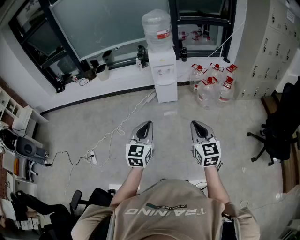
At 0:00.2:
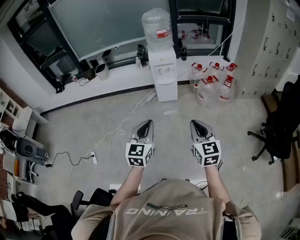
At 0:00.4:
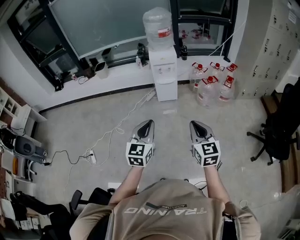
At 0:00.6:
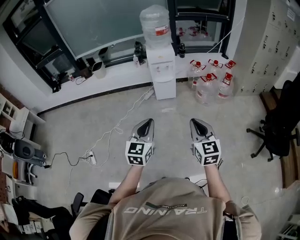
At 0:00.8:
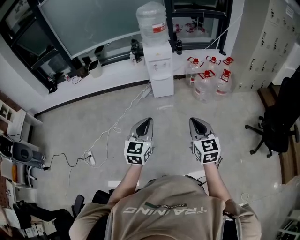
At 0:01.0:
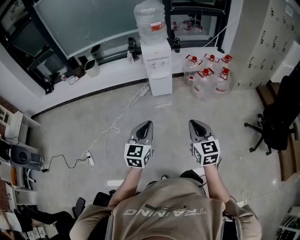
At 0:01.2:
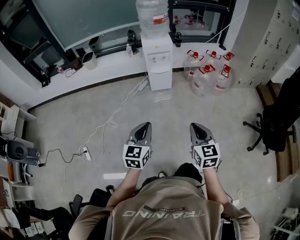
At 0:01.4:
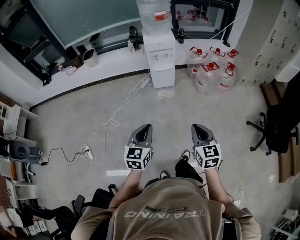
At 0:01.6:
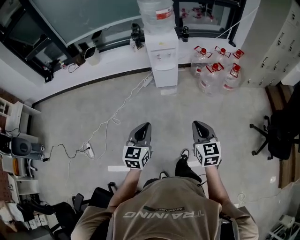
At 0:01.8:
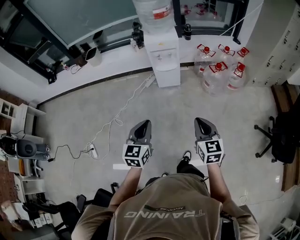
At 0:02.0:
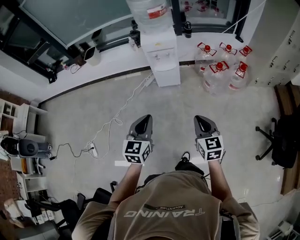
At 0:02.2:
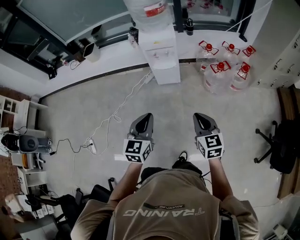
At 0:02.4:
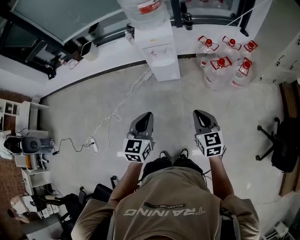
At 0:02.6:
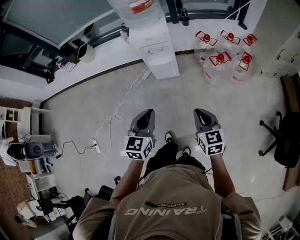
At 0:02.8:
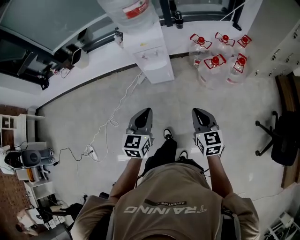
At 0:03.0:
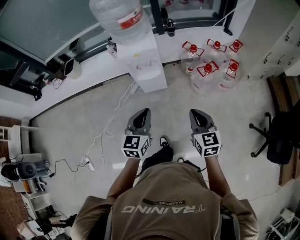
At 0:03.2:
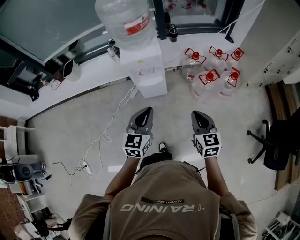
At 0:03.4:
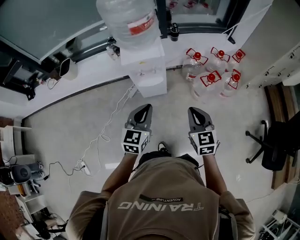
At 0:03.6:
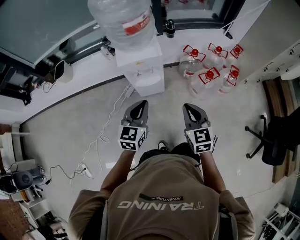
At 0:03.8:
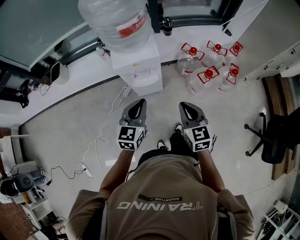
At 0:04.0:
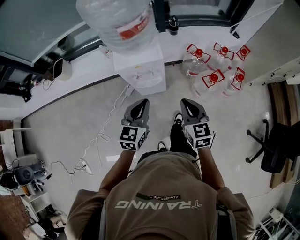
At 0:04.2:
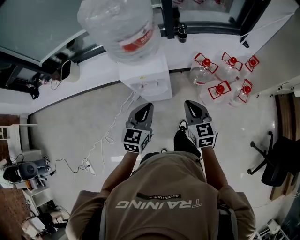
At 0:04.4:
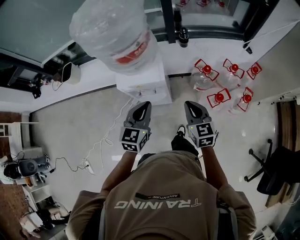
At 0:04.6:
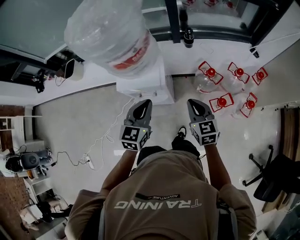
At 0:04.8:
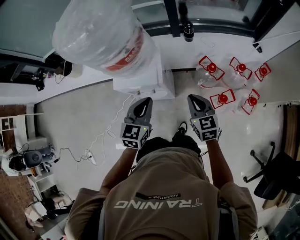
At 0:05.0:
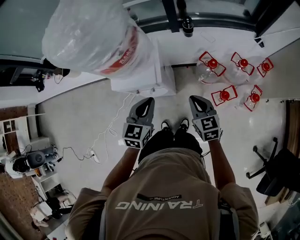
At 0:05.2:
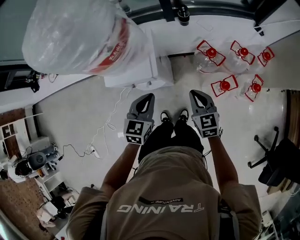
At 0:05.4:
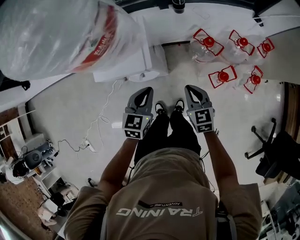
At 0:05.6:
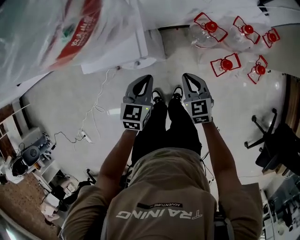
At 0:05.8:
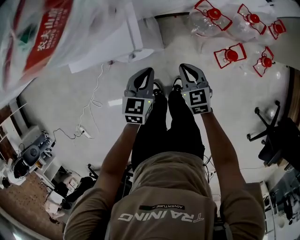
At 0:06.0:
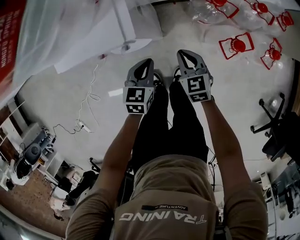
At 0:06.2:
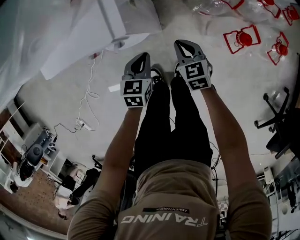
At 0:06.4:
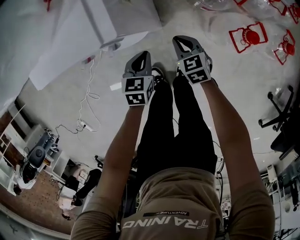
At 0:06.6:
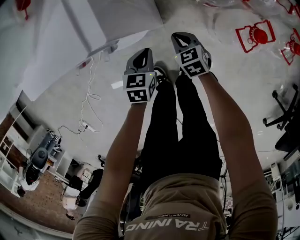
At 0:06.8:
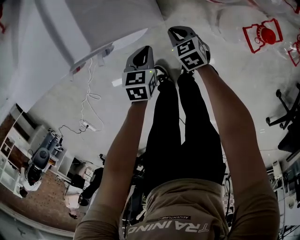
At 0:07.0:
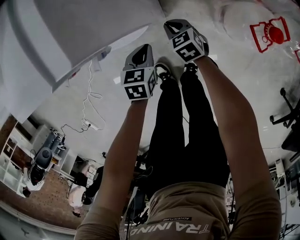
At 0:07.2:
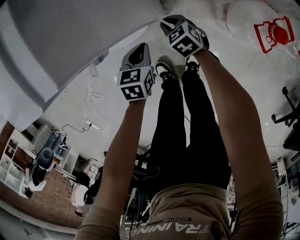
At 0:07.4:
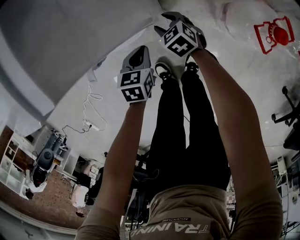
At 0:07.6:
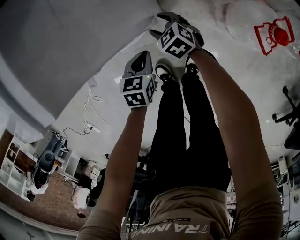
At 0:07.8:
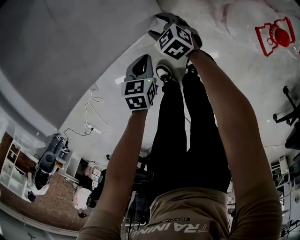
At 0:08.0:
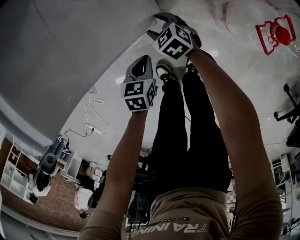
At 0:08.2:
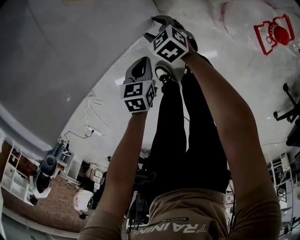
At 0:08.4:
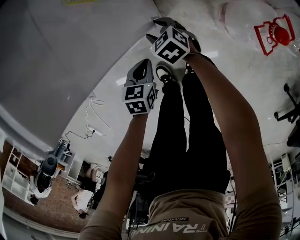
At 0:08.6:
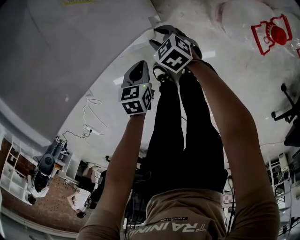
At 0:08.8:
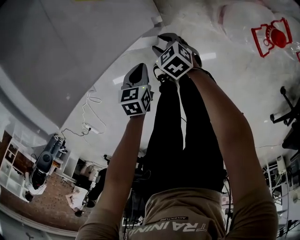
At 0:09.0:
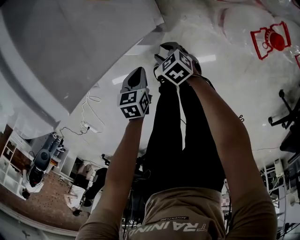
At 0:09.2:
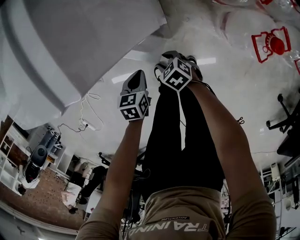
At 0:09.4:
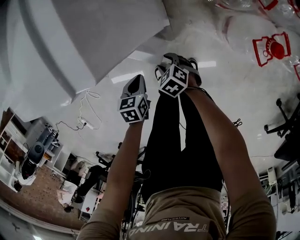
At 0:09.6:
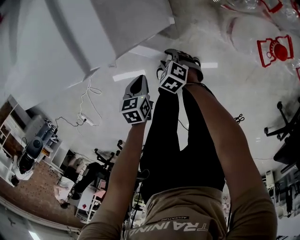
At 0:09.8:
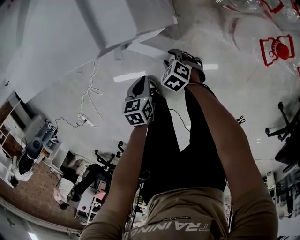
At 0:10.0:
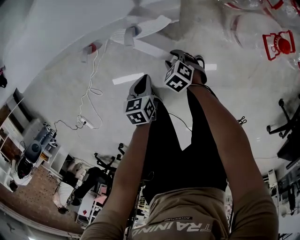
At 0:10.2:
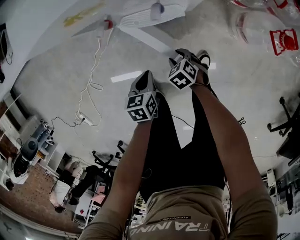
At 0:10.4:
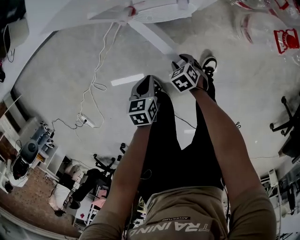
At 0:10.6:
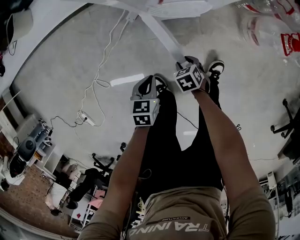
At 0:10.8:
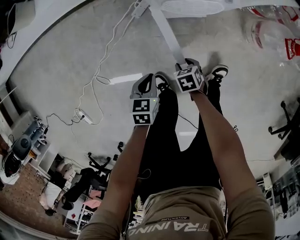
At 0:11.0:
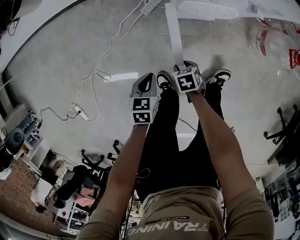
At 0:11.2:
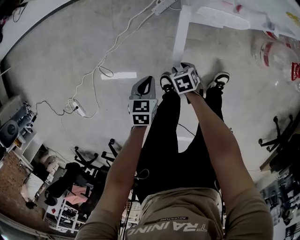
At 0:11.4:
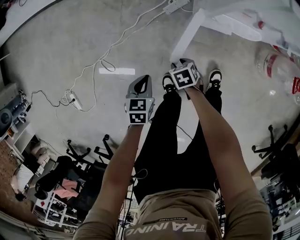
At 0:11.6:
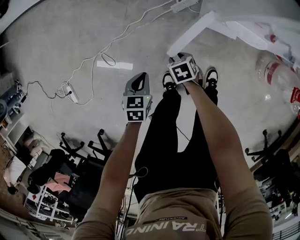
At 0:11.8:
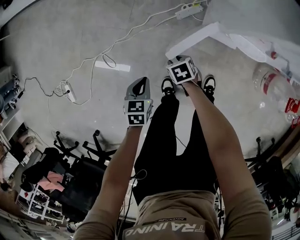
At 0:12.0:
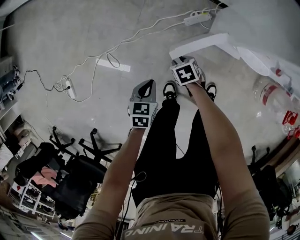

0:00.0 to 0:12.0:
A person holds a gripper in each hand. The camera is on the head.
0:00.0 to 0:01.6: Both grippers move forward and downward, roughly 15 cm.
0:01.6 to 0:03.0: The two grippers go approximately 35 cm forward and to the right.
0:03.0 to 0:04.4: The grippers both shift forward by roughly 35 cm.
0:04.4 to 0:06.0: Both grippers travel together downward, some 35 cm. The left gripper turns by roughly 20 degrees.
0:06.0 to 0:07.6: The right gripper is displaced downward and to the left by some 30 cm, turns by roughly 20 degrees, and opens its fingers. Meanwhile the left gripper is displaced downward by some 25 cm.
0:07.6 to 0:09.0: The right gripper moves backward, approximately 10 cm; the left gripper shifts by roughly 5 cm.
0:09.0 to 0:10.4: The left gripper goes some 20 cm to the left, while the right gripper travels to the left and backward by about 15 cm.
0:10.4 to 0:12.0: The left gripper changes place by some 30 cm. Meanwhile the right gripper changes place by approximately 30 cm.

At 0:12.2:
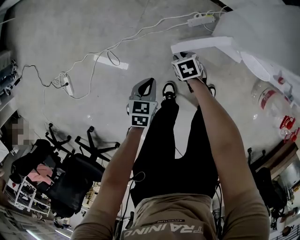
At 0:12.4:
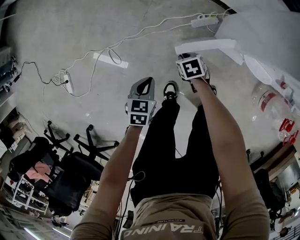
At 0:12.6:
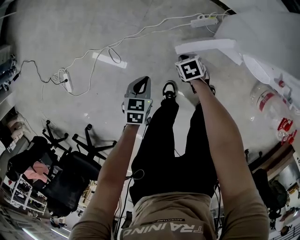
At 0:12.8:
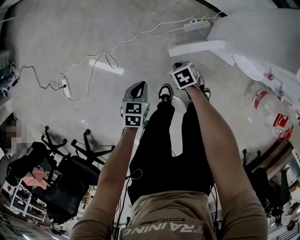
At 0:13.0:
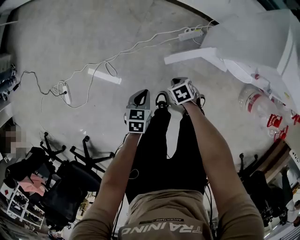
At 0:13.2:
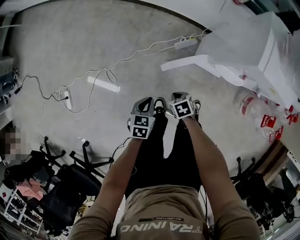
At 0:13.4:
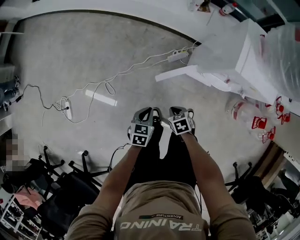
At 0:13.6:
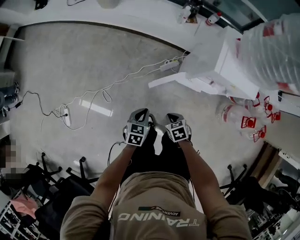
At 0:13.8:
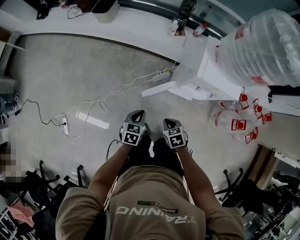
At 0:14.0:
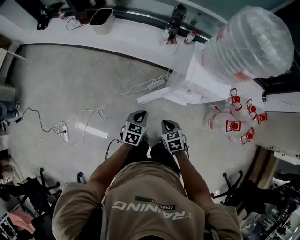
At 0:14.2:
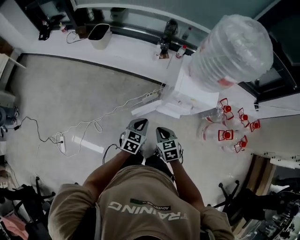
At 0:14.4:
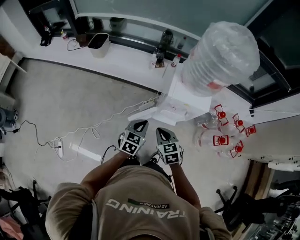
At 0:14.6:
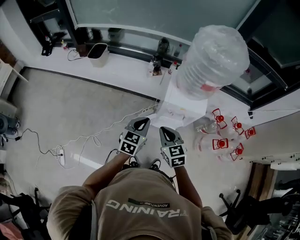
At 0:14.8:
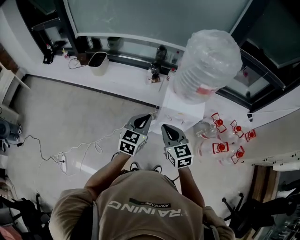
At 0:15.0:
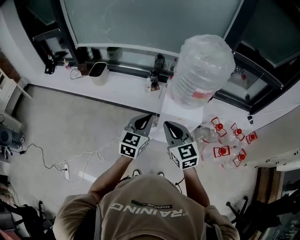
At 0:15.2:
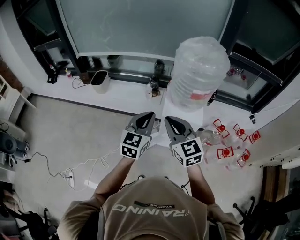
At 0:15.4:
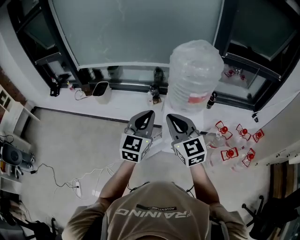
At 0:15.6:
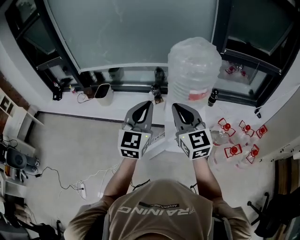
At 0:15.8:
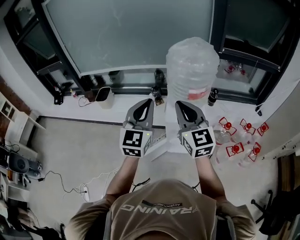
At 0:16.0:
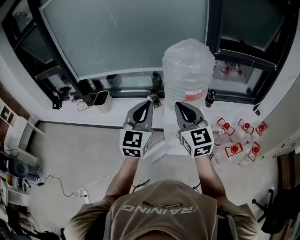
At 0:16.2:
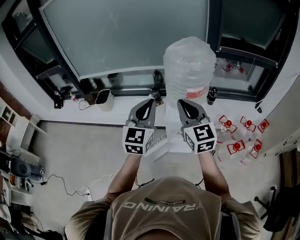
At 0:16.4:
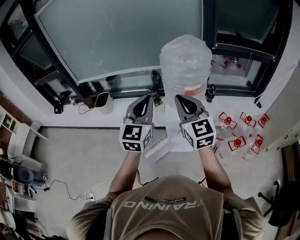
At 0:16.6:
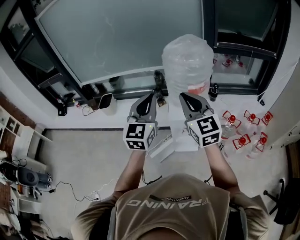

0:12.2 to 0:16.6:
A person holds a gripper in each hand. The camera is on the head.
0:12.2 to 0:13.6: The right gripper goes some 30 cm upward and backward, and closes its fingers. The left gripper is displaced upward by roughly 20 cm.
0:13.6 to 0:15.2: The two grippers go approximately 50 cm upward. The left gripper points its fingers about 40 degrees further upward, while the right gripper points its fingers roughly 60 degrees further upward.
0:15.2 to 0:16.6: The right gripper goes roughly 15 cm upward and to the right; the left gripper moves upward, approximately 15 cm.

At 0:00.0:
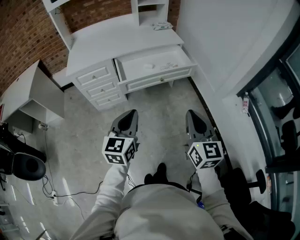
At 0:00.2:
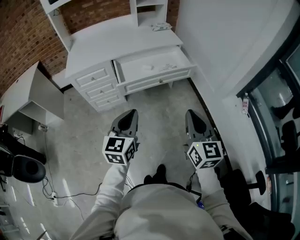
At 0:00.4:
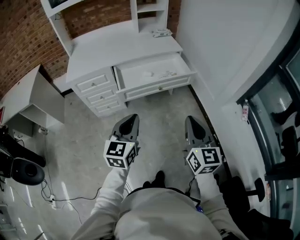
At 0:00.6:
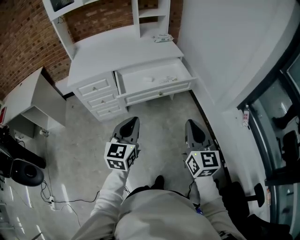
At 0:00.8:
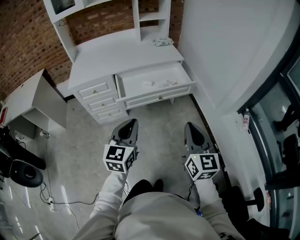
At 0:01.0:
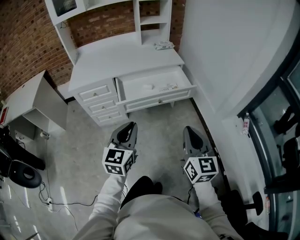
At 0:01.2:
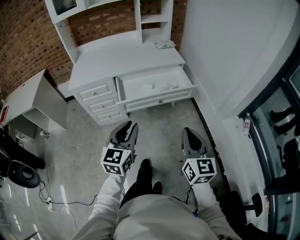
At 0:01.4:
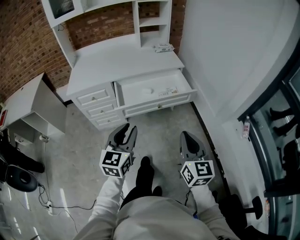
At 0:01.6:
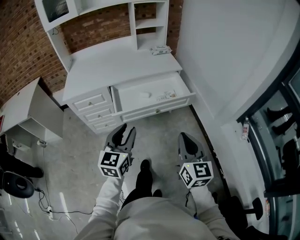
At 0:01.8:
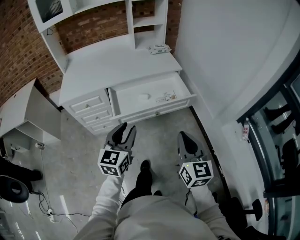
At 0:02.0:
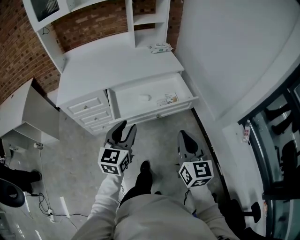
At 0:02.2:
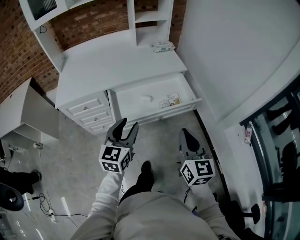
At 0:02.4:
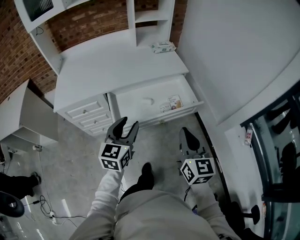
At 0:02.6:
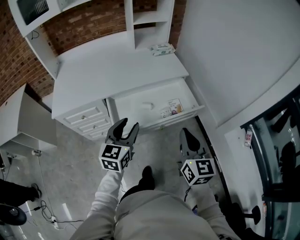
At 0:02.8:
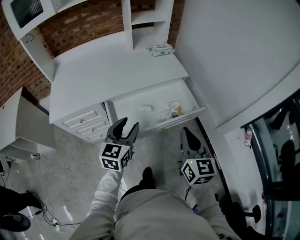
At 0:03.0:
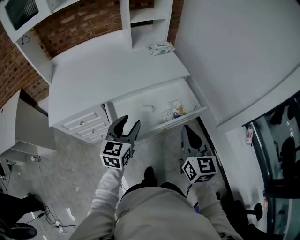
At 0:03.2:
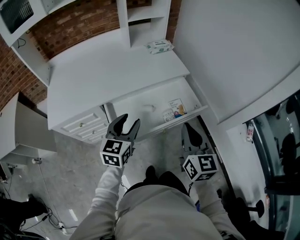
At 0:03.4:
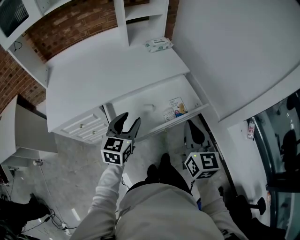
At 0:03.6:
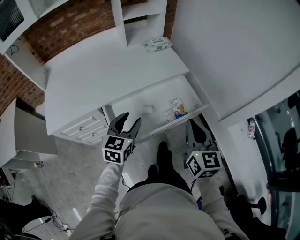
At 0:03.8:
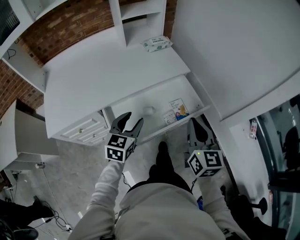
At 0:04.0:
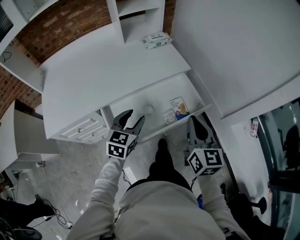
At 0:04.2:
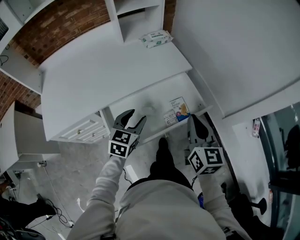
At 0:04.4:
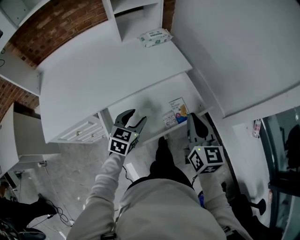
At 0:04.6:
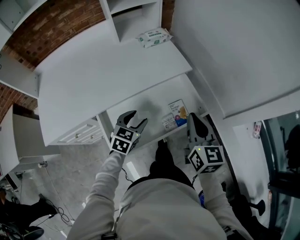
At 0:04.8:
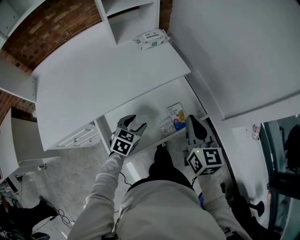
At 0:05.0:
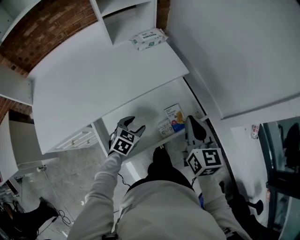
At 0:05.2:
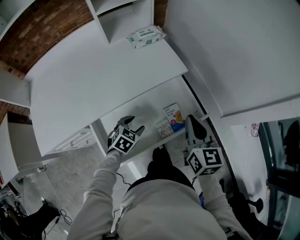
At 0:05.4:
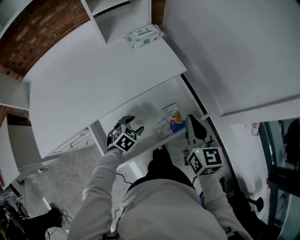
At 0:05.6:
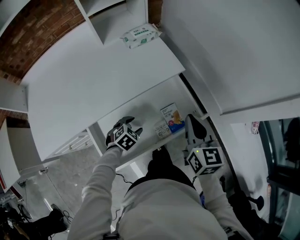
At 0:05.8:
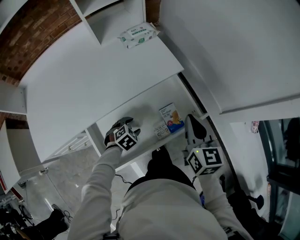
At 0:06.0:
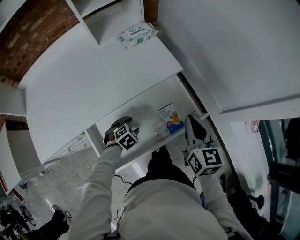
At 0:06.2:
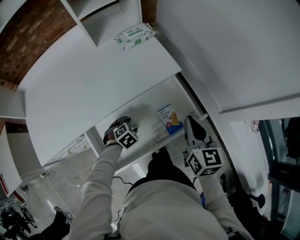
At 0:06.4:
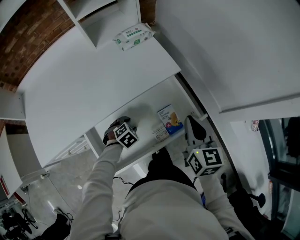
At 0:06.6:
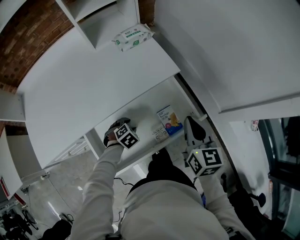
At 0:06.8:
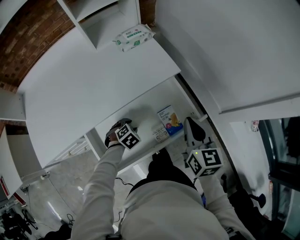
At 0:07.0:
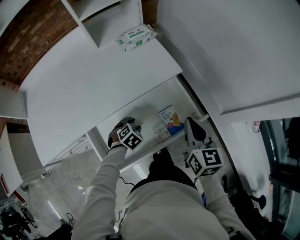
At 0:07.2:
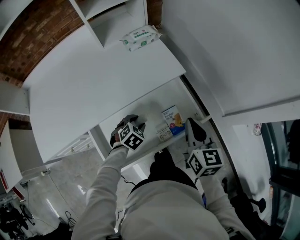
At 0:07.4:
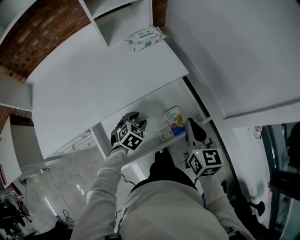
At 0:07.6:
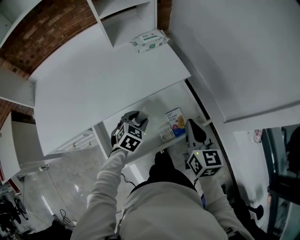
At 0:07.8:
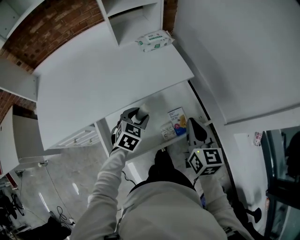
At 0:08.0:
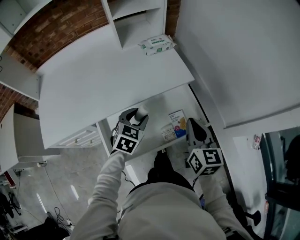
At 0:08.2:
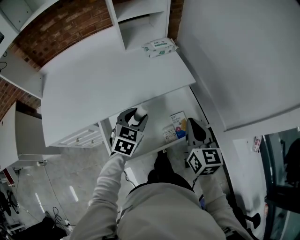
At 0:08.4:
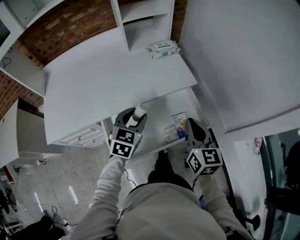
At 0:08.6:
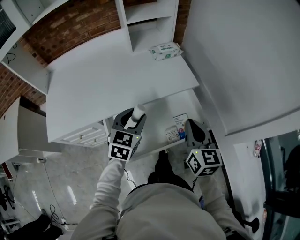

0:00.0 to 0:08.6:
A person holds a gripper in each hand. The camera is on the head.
0:00.0 to 0:01.4: The two grippers go some 5 cm forward. The left gripper opens.
0:01.4 to 0:02.8: The two grippers go roughly 25 cm forward.
0:02.8 to 0:04.4: The left gripper moves forward and downward, roughly 20 cm, and turns by approximately 20 degrees. The right gripper moves forward, approximately 15 cm.
0:04.4 to 0:05.8: The left gripper moves downward, approximately 20 cm, and points its fingers roughly 30 degrees further downward. The right gripper heads forward, covering approximately 10 cm.
0:05.8 to 0:07.2: The left gripper shifts by about 5 cm.
0:07.2 to 0:08.6: The right gripper goes about 10 cm to the left and upward, while the left gripper is displaced upward by some 20 cm, and tips its fingers upward by approximately 30 degrees.
